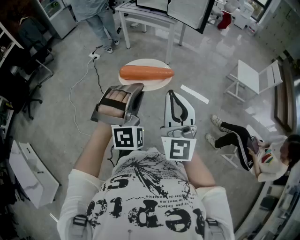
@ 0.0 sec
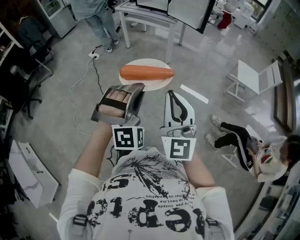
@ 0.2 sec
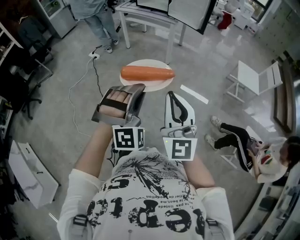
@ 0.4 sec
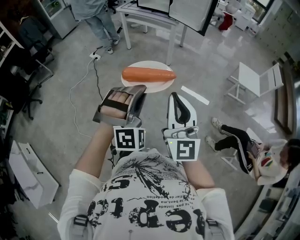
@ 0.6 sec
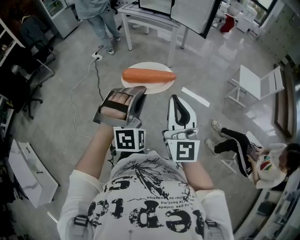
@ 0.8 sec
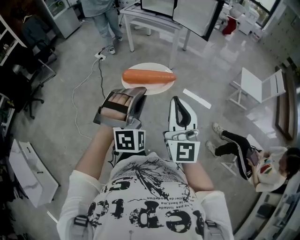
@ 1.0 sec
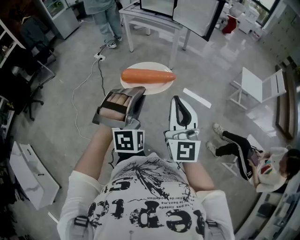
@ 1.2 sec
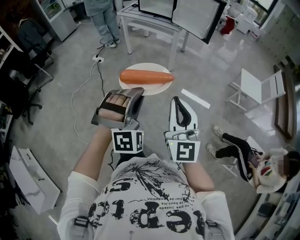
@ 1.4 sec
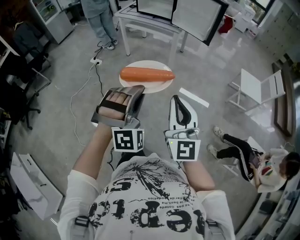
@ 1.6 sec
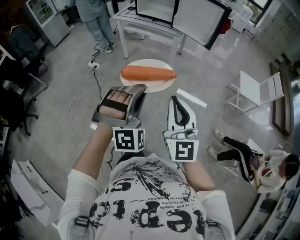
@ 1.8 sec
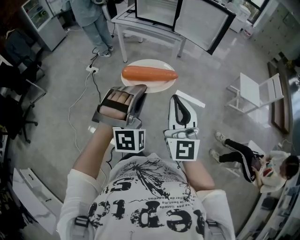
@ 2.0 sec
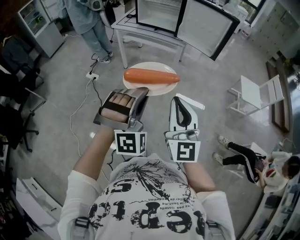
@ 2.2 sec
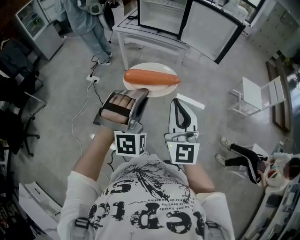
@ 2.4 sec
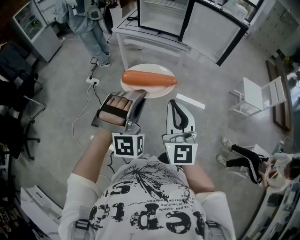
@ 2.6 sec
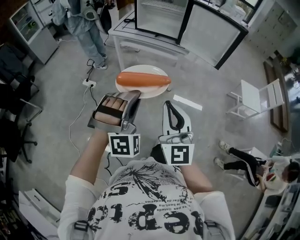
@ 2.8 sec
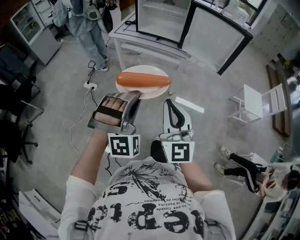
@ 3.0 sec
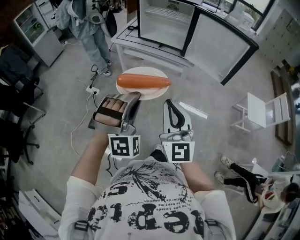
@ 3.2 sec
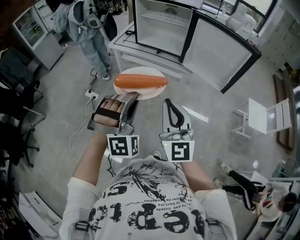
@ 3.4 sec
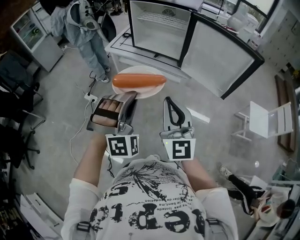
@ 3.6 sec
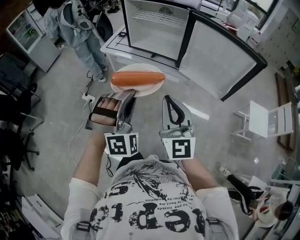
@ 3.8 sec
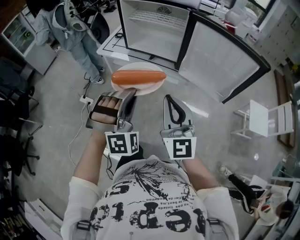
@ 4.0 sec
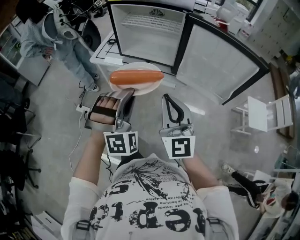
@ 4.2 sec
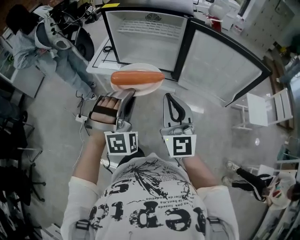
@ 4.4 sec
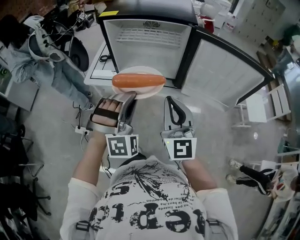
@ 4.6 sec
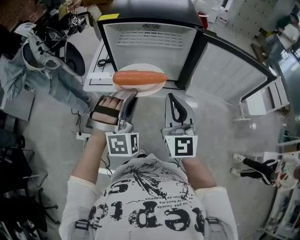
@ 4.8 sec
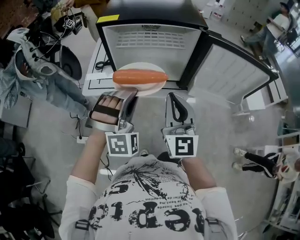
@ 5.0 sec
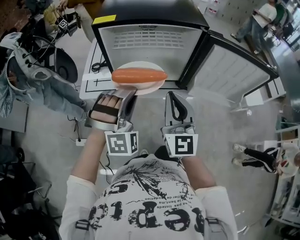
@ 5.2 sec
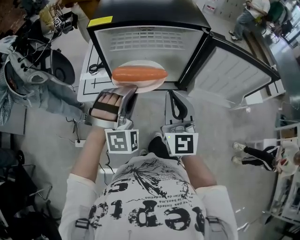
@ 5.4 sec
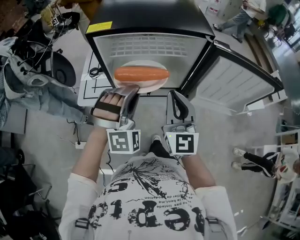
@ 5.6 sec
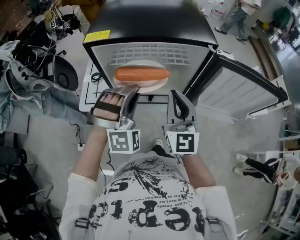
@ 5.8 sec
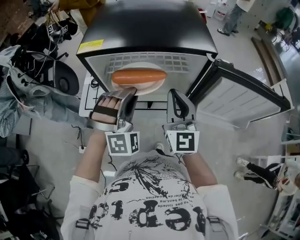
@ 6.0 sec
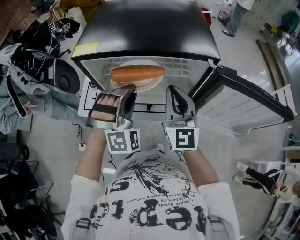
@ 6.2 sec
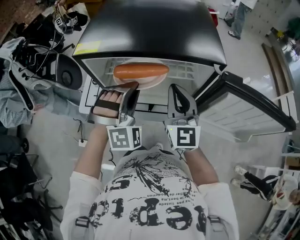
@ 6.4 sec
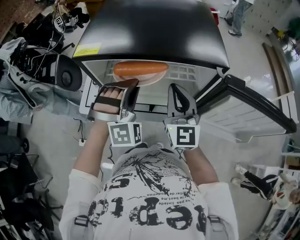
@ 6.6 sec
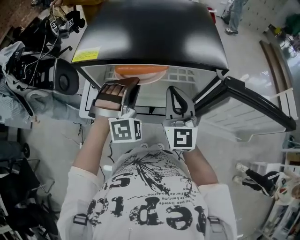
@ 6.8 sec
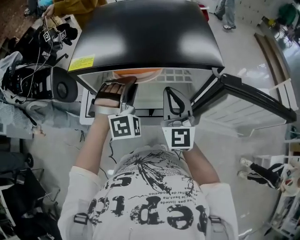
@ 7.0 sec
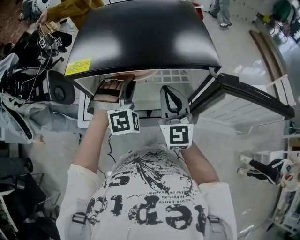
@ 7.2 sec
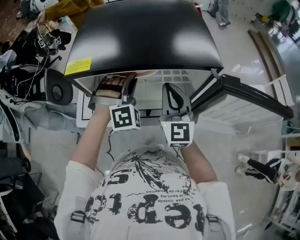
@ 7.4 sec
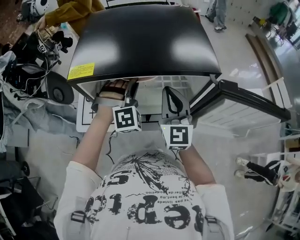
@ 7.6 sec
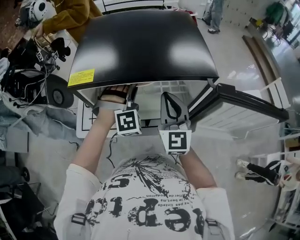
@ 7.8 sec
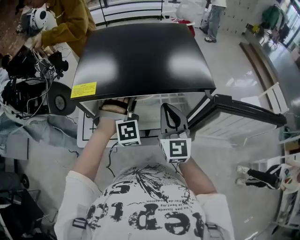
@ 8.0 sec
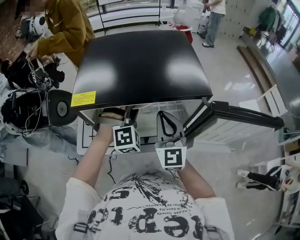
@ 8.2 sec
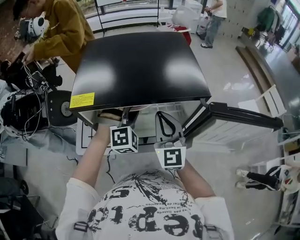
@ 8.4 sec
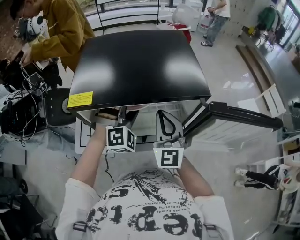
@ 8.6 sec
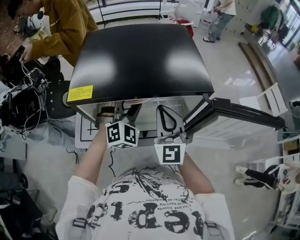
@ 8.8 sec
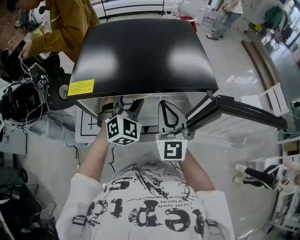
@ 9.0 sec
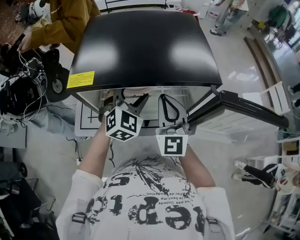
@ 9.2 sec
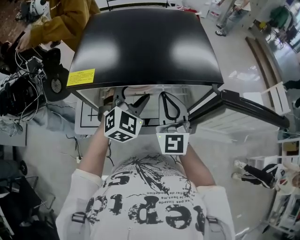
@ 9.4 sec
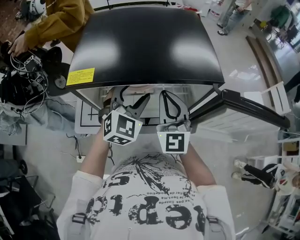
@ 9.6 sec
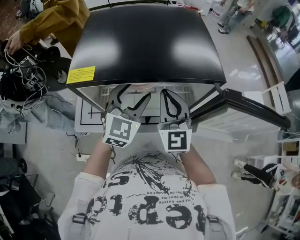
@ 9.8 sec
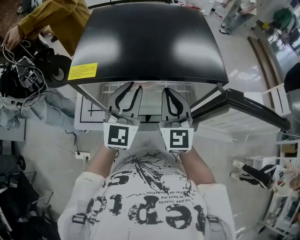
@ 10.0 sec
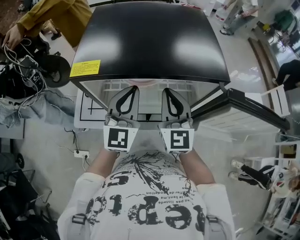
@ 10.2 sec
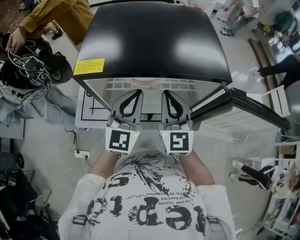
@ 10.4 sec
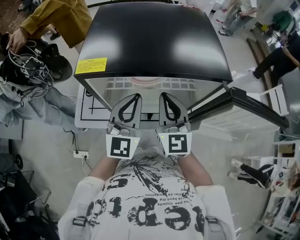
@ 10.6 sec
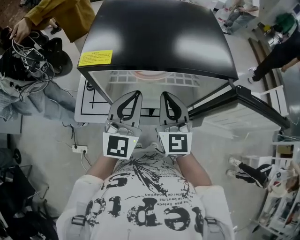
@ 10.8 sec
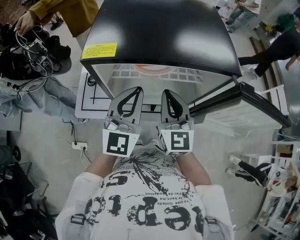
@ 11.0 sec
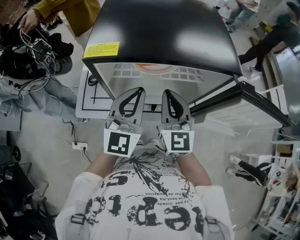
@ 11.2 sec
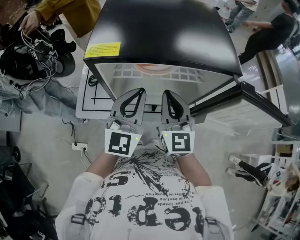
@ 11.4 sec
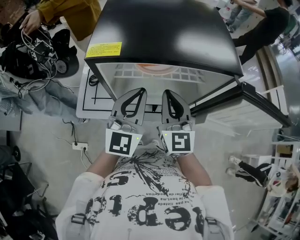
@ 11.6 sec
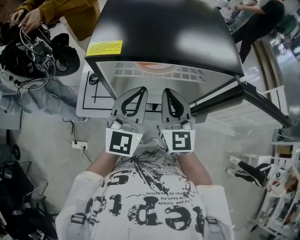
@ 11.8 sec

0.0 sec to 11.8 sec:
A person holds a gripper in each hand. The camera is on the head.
0.0 sec to 1.4 sec: The two grippers go roughly 10 cm forward.
1.4 sec to 3.0 sec: Both grippers travel together forward and to the left, roughly 40 cm.
3.0 sec to 4.4 sec: The grippers both shift forward by about 40 cm.
4.4 sec to 6.0 sec: The grippers both shift forward by roughly 30 cm.
6.0 sec to 7.4 sec: Both grippers move forward, about 10 cm.
7.4 sec to 8.8 sec: The left gripper swivels some 30 degrees, and opens up.
8.8 sec to 10.4 sec: The left gripper travels backward by approximately 5 cm, rolls counterclockwise, seen from behind, by some 40 degrees, and closes its fingers.
10.4 sec to 11.8 sec: The grippers make only small movements.

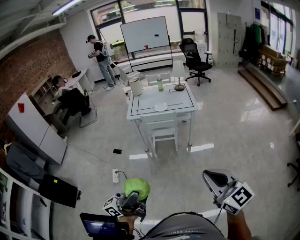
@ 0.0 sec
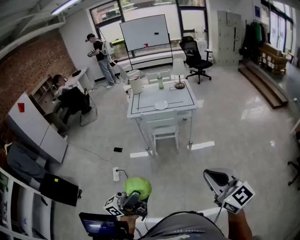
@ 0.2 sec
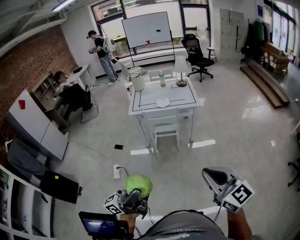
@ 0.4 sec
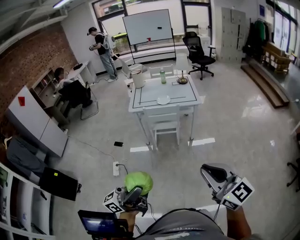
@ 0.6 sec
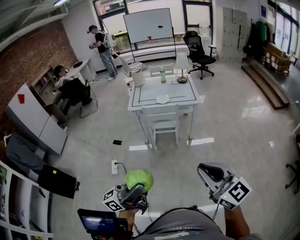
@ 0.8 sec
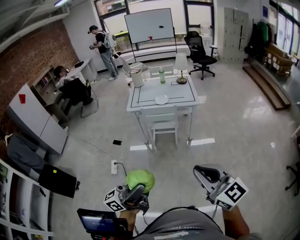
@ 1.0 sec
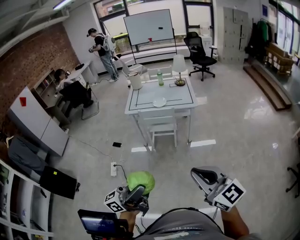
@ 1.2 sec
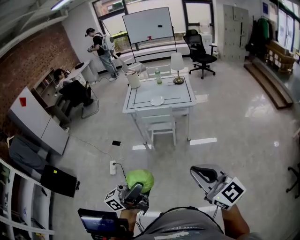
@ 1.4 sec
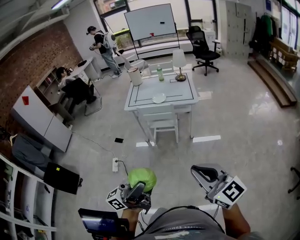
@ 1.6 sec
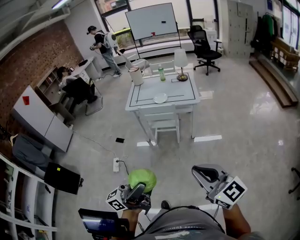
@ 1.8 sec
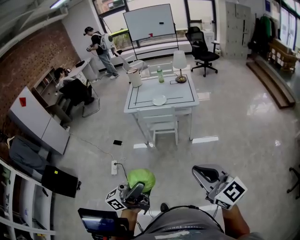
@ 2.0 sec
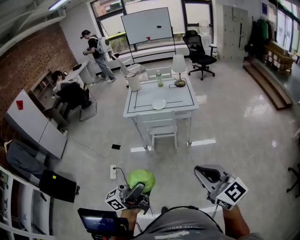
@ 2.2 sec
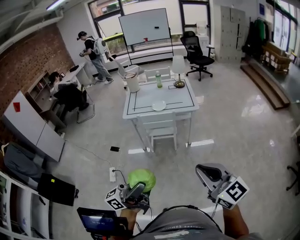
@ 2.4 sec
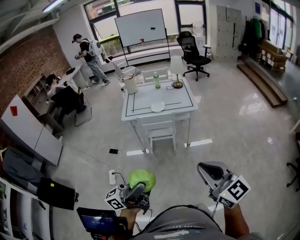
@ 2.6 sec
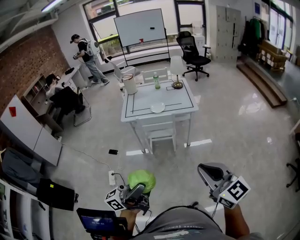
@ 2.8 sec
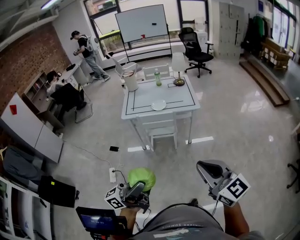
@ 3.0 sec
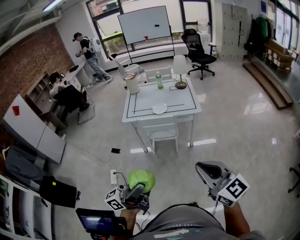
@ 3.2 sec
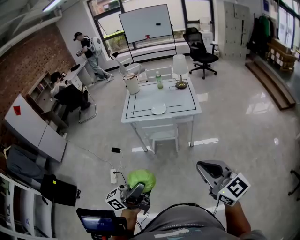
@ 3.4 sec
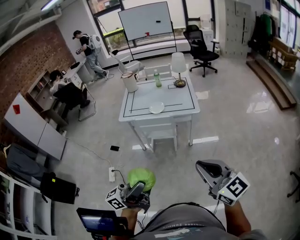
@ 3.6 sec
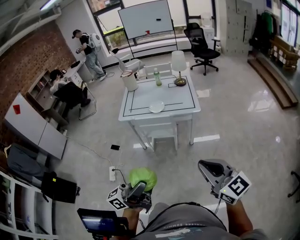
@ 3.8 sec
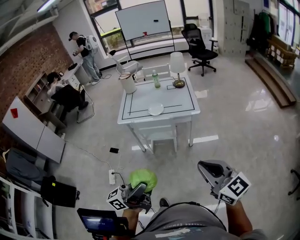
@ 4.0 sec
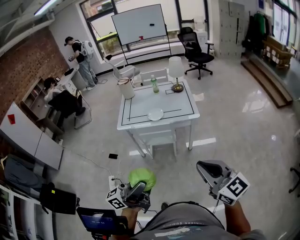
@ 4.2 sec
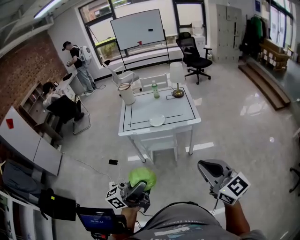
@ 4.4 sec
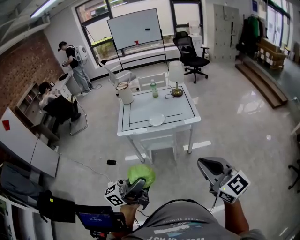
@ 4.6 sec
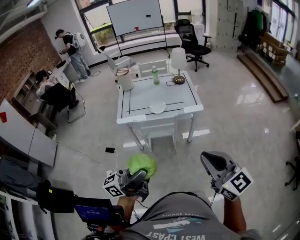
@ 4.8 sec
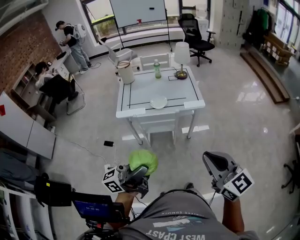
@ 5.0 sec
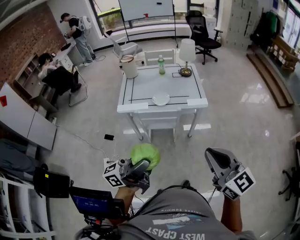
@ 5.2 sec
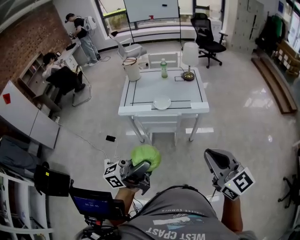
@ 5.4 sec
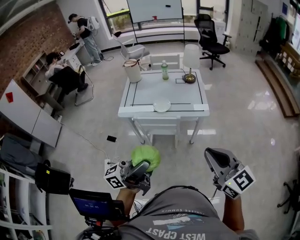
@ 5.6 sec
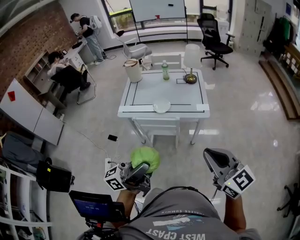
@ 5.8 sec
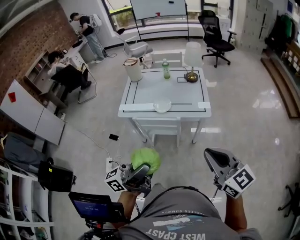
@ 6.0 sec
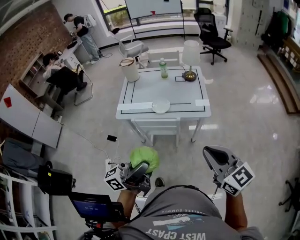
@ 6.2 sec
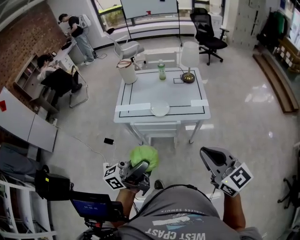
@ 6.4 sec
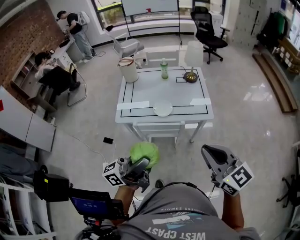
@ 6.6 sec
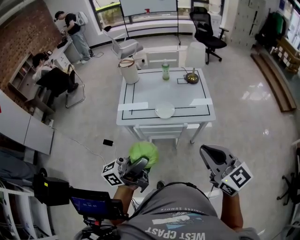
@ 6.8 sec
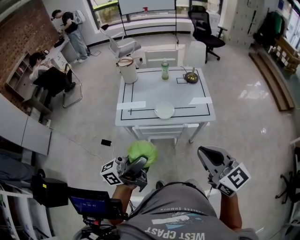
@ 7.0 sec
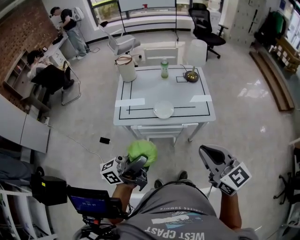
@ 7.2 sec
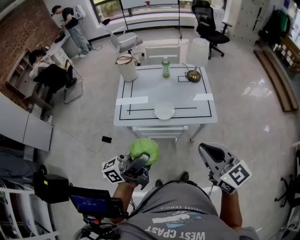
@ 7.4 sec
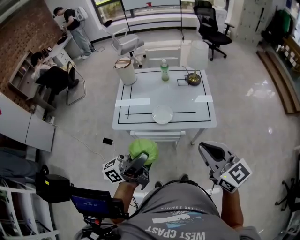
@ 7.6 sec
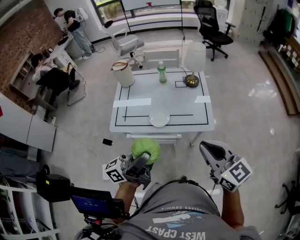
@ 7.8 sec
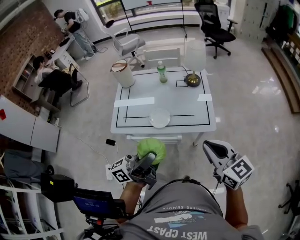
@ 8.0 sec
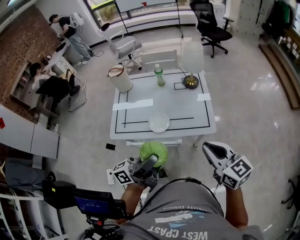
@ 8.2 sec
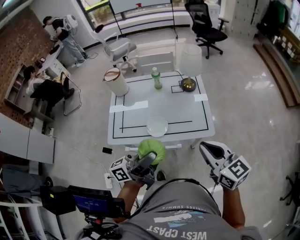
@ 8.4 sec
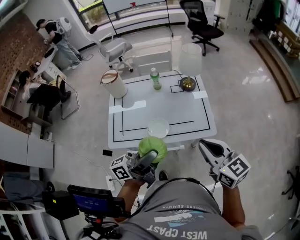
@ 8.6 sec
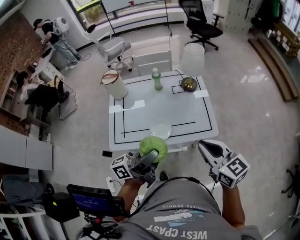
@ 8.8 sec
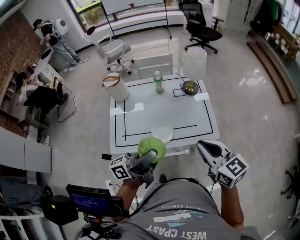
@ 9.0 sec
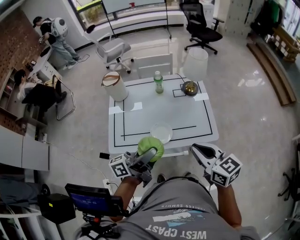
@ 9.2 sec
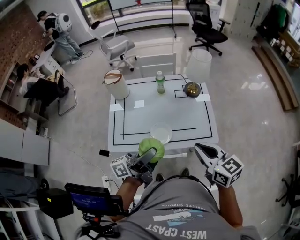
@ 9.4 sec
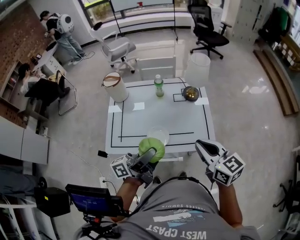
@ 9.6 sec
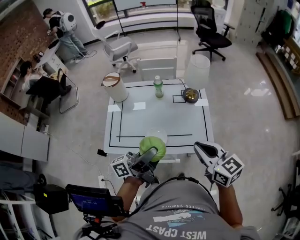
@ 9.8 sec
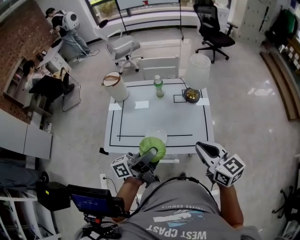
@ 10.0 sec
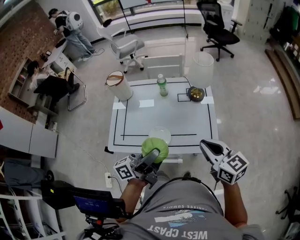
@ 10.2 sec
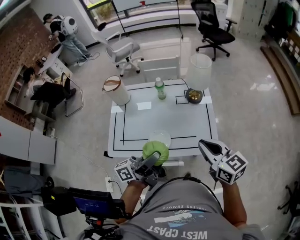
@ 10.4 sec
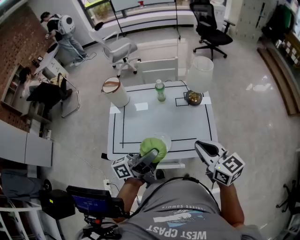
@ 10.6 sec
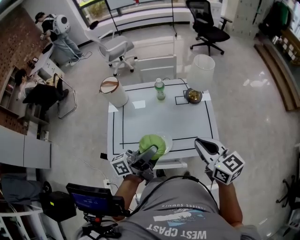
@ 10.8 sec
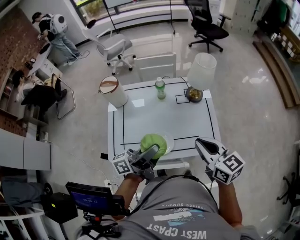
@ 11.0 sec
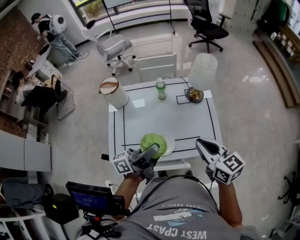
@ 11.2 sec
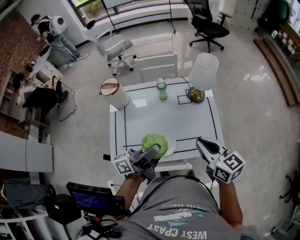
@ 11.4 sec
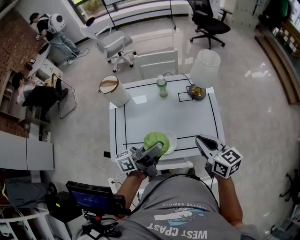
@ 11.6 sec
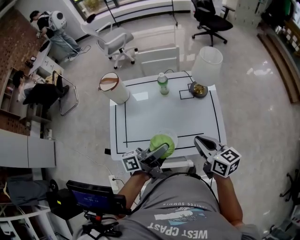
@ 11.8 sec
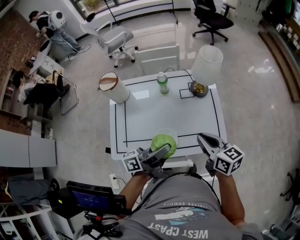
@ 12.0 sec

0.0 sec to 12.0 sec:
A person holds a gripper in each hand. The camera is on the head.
0.0 sec to 1.6 sec: The right gripper is displaced to the right and forward by approximately 10 cm. Meanwhile the left gripper heads to the right, covering some 15 cm.
1.6 sec to 3.0 sec: The two grippers go some 15 cm forward and to the left.
3.0 sec to 4.4 sec: The grippers both shift forward by roughly 15 cm.
4.4 sec to 6.0 sec: The two grippers go approximately 15 cm forward.
6.0 sec to 7.6 sec: The grippers both shift forward and to the left by roughly 20 cm.
7.6 sec to 9.0 sec: Both grippers move forward, some 15 cm.
9.0 sec to 10.4 sec: Both grippers travel together forward and to the right, roughly 10 cm.
10.4 sec to 12.0 sec: The left gripper shifts about 10 cm forward and downward, while the right gripper goes approximately 10 cm downward and forward.
